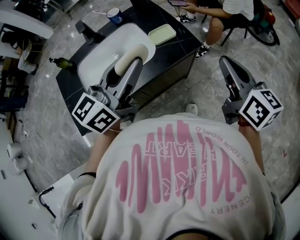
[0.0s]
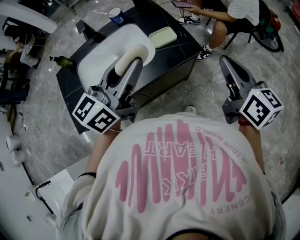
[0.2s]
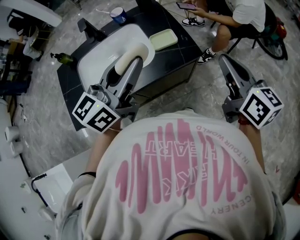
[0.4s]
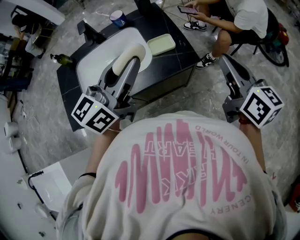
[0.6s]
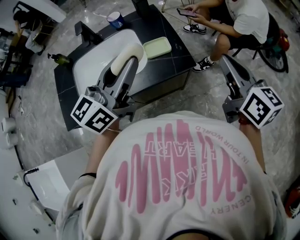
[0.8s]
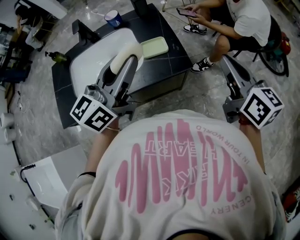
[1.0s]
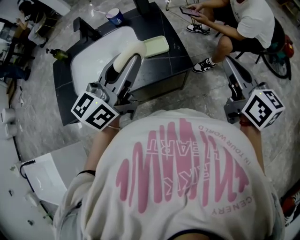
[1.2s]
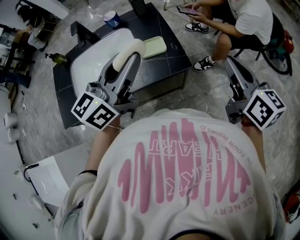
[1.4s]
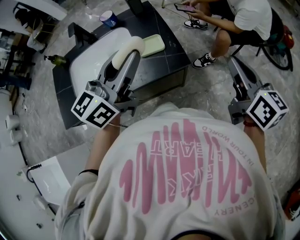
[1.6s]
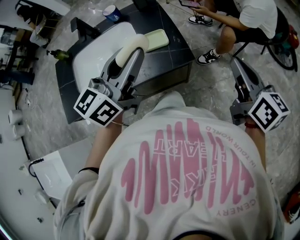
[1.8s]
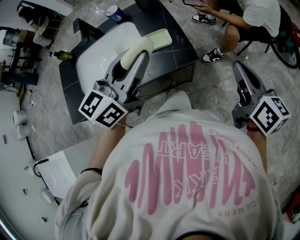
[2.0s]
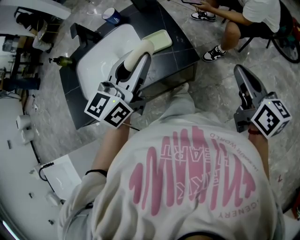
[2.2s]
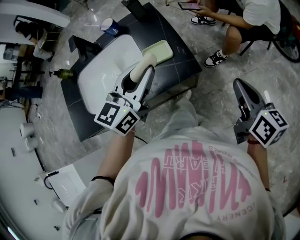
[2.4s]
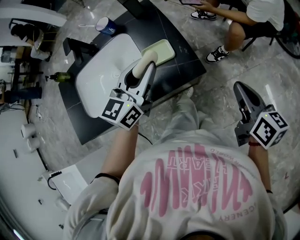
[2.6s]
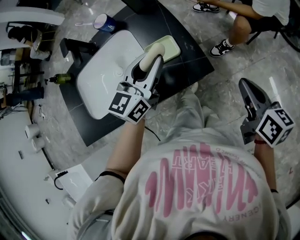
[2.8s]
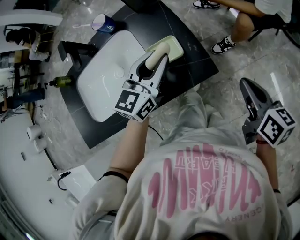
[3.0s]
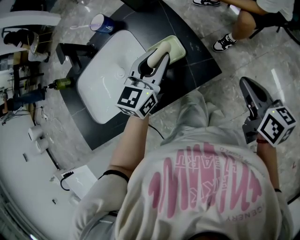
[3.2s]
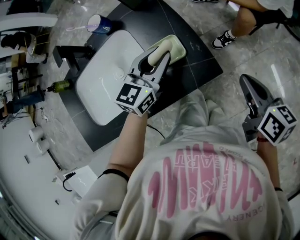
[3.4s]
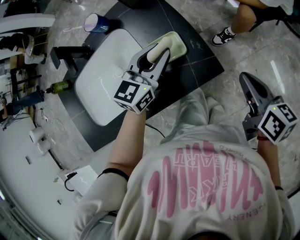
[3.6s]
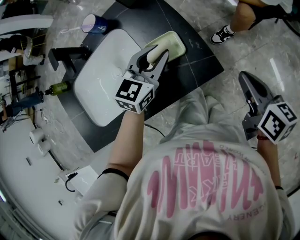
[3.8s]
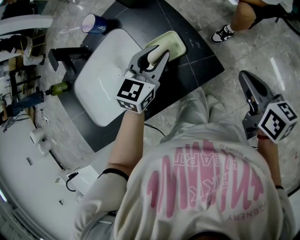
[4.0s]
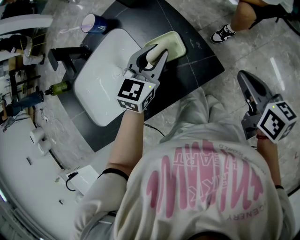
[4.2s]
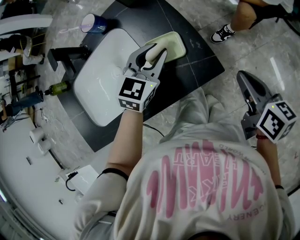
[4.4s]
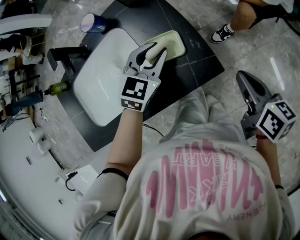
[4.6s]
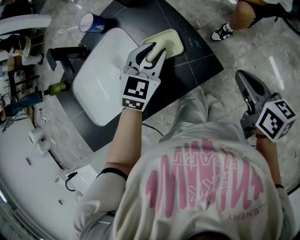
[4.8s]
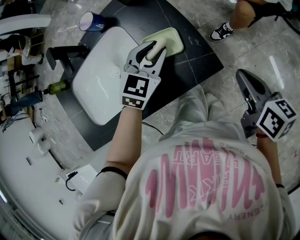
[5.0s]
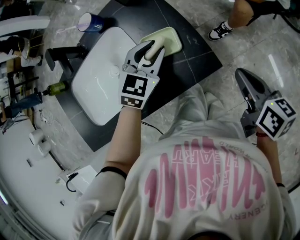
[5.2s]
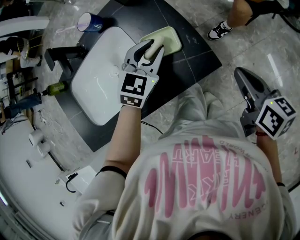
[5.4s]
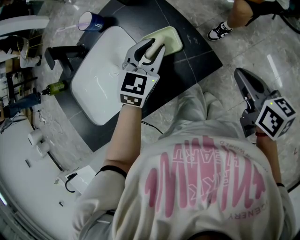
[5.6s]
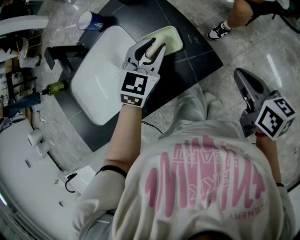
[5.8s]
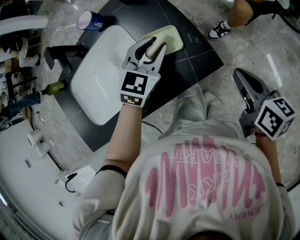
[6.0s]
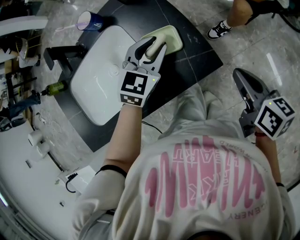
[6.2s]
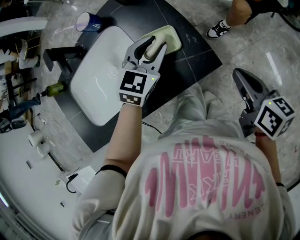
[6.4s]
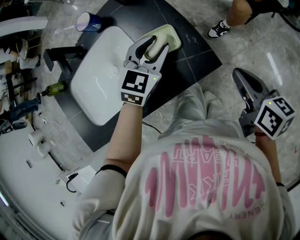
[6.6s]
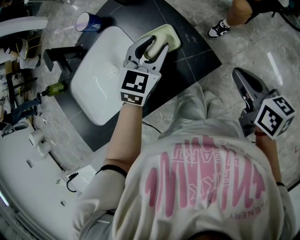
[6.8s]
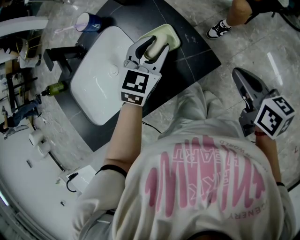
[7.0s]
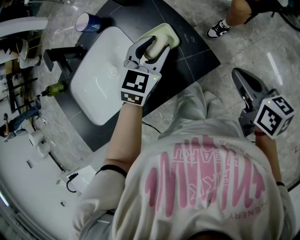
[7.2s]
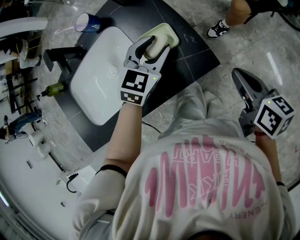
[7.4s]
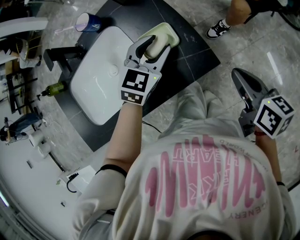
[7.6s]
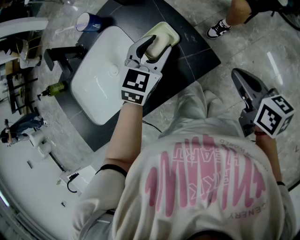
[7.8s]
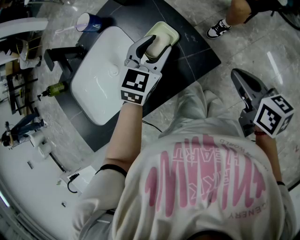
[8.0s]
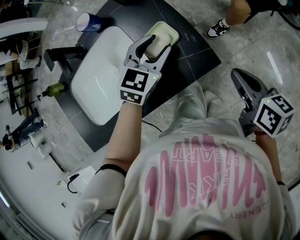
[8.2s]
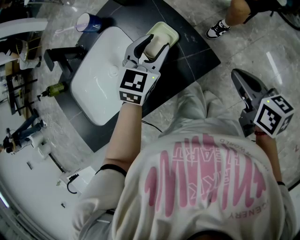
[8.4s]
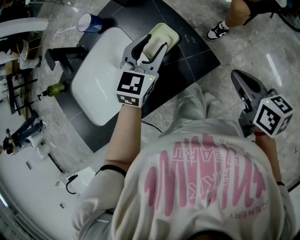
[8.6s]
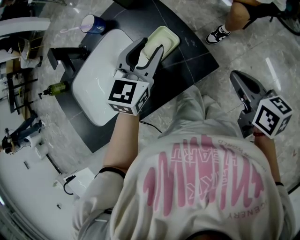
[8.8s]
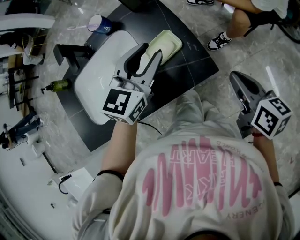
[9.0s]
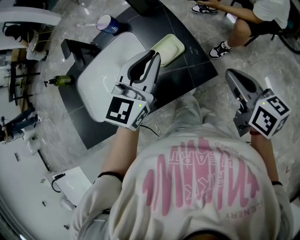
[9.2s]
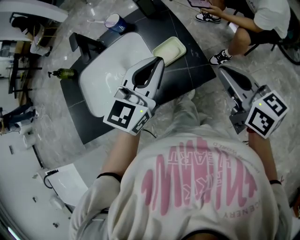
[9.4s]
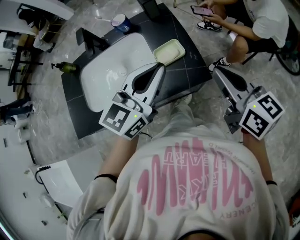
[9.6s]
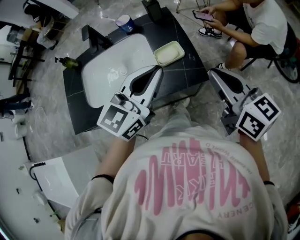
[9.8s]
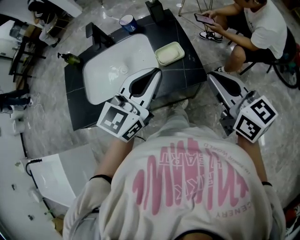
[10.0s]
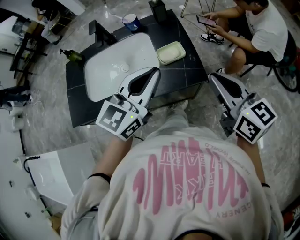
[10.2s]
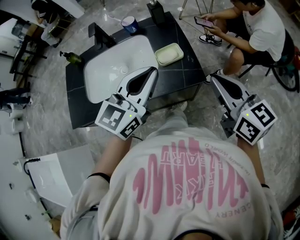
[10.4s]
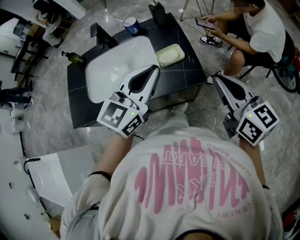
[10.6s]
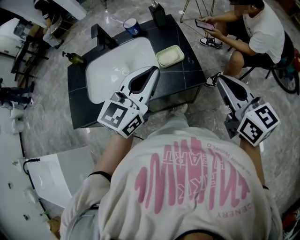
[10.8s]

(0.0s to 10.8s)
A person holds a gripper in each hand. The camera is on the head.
0.0s - 1.6s: The right gripper is displaced forward and to the right by some 20 cm, while the left gripper is displaced to the right and forward by about 15 cm.
1.6s - 3.0s: The left gripper heads downward and forward, covering some 20 cm, and changes its angle by about 20 degrees. The right gripper heads downward, covering about 15 cm, and changes its angle by some 20 degrees.
3.0s - 4.6s: The left gripper heads downward, covering roughly 5 cm, and turns by approximately 30 degrees.
4.6s - 7.8s: There are only small adjustments of the grippers.
7.8s - 9.2s: The left gripper heads upward, covering about 15 cm, changes its angle by about 20 degrees, and closes its fingers, while the right gripper is displaced upward by roughly 5 cm.
9.2s - 10.8s: The left gripper heads backward and upward, covering about 15 cm; the right gripper shifts approximately 10 cm upward and backward, and swivels some 30 degrees.

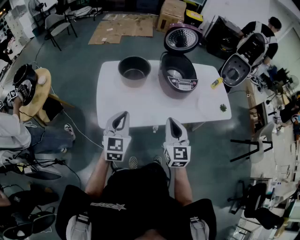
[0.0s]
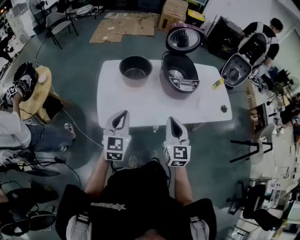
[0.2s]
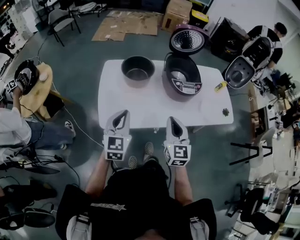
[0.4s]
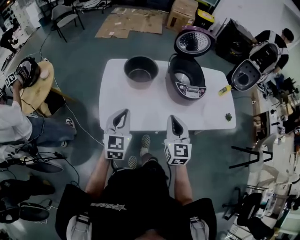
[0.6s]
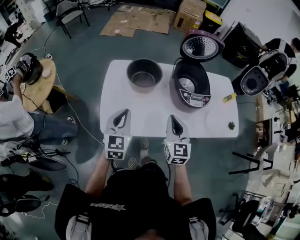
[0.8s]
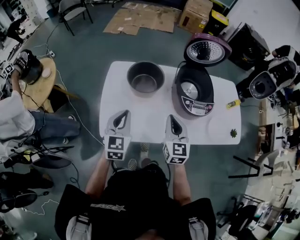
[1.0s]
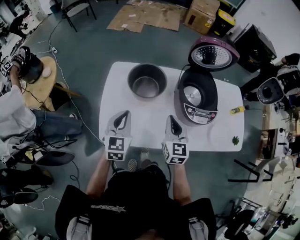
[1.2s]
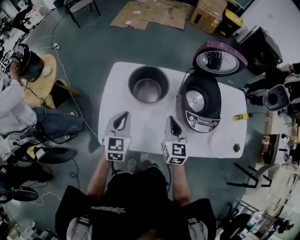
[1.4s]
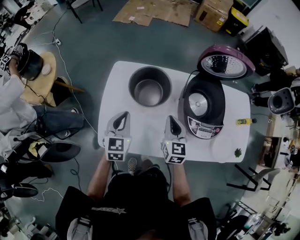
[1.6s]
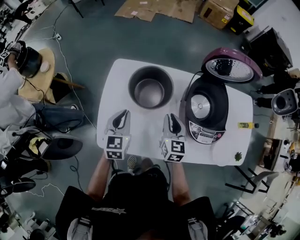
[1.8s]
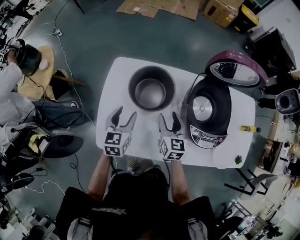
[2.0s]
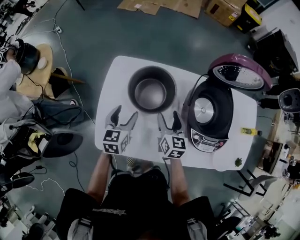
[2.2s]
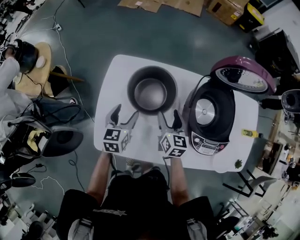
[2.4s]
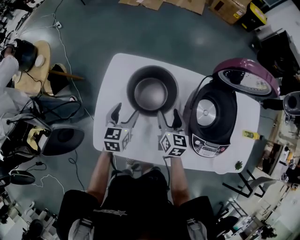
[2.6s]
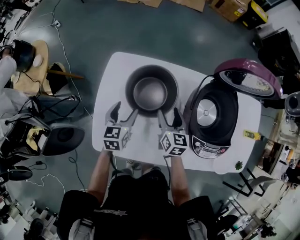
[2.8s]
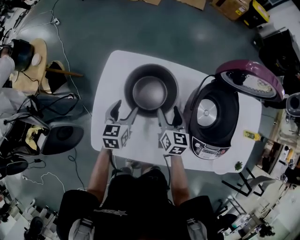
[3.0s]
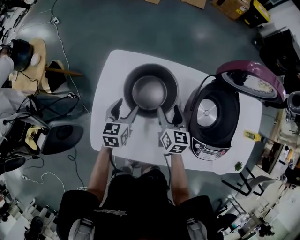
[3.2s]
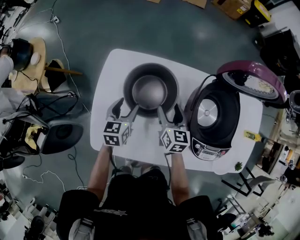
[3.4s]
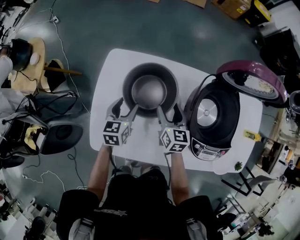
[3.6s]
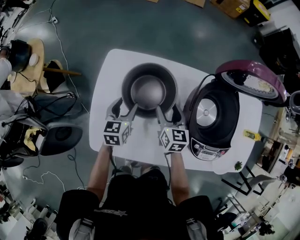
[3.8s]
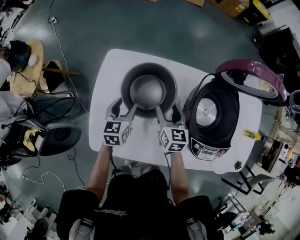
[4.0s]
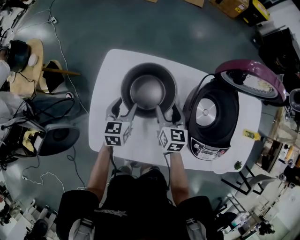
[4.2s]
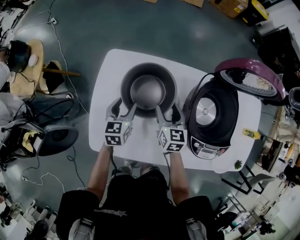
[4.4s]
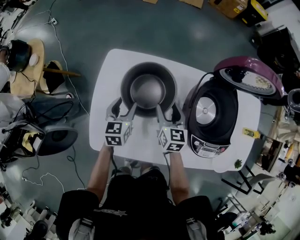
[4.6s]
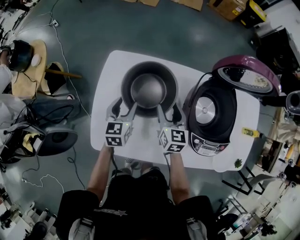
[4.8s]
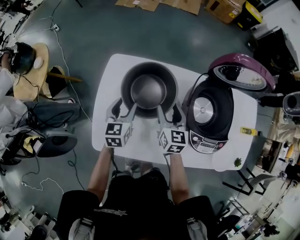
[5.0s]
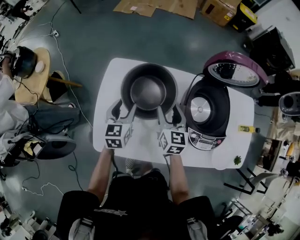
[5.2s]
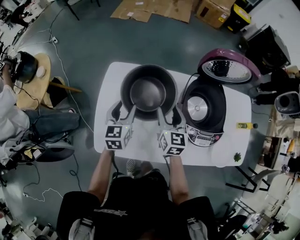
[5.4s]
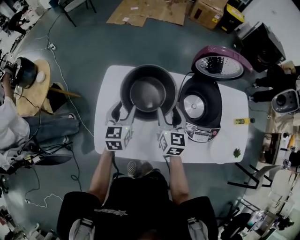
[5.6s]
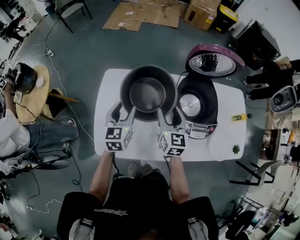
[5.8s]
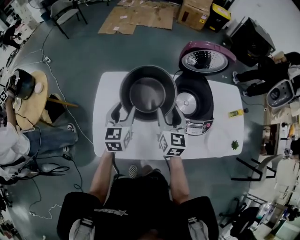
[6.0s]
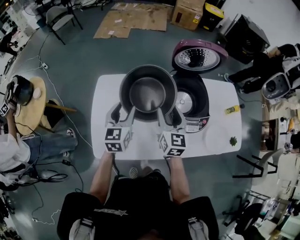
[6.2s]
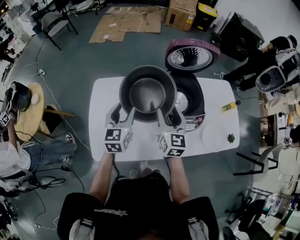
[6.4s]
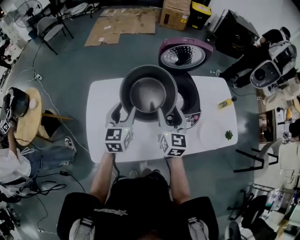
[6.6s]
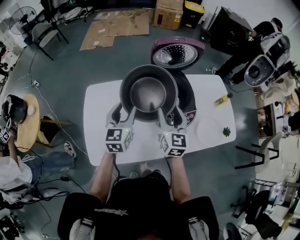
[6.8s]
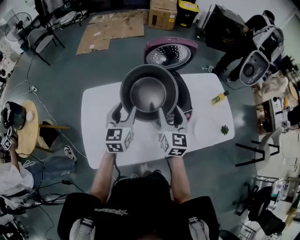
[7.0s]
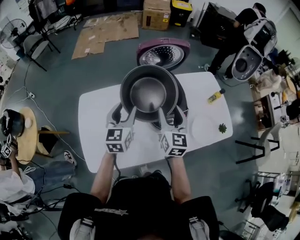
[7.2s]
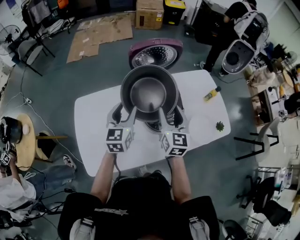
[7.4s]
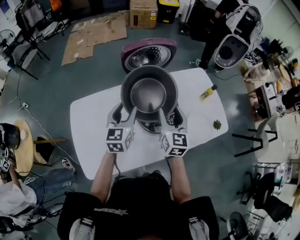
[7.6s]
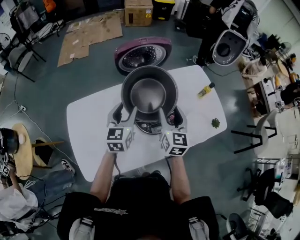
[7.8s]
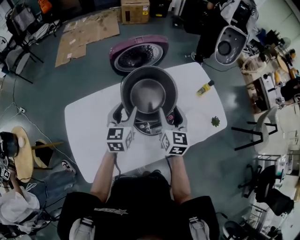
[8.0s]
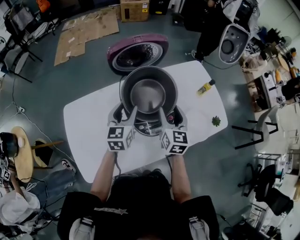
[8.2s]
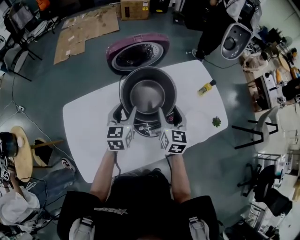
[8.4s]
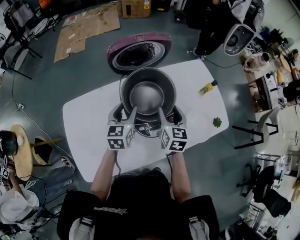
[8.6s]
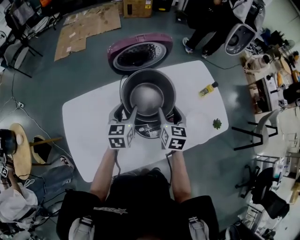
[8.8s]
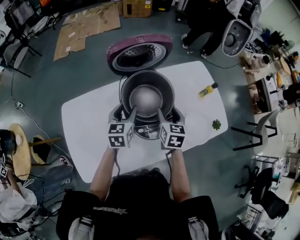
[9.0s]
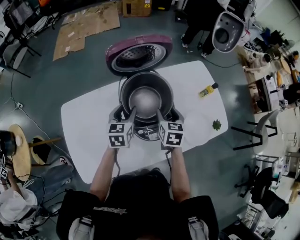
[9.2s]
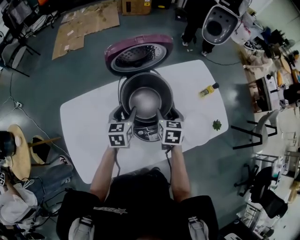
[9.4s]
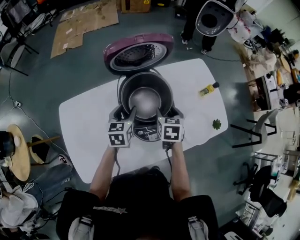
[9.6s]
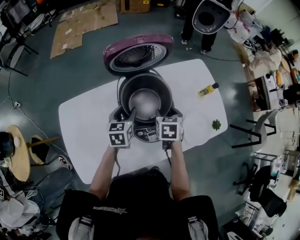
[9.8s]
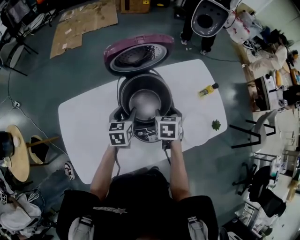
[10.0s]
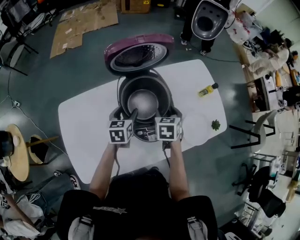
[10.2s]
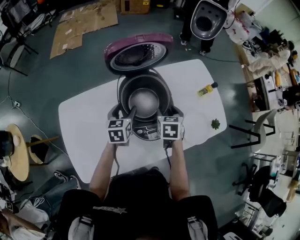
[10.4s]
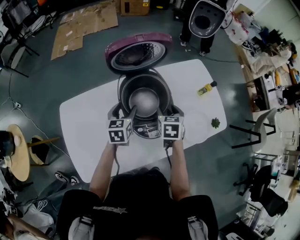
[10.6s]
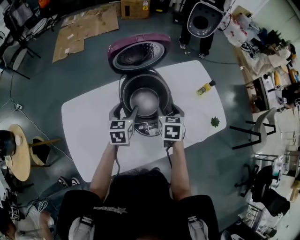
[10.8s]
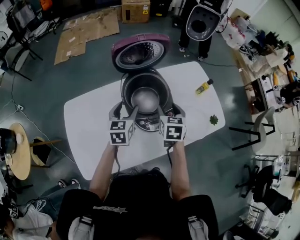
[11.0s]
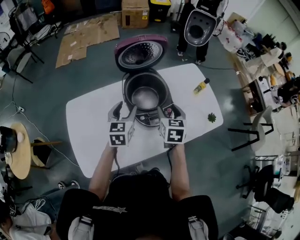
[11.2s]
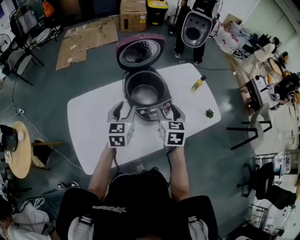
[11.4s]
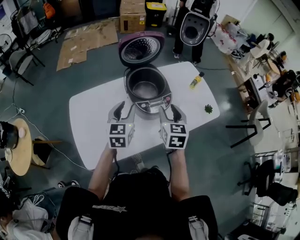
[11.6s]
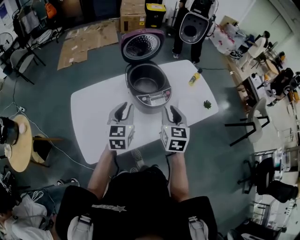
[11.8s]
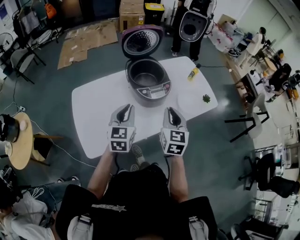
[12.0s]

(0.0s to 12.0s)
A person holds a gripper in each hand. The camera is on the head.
0.0s - 1.6s: The two grippers go some 25 cm forward.
1.6s - 3.0s: Both grippers travel together downward and forward, roughly 15 cm. The left gripper swivels approximately 20 degrees, and opens up. The right gripper opens.
3.0s - 4.4s: The grippers make only small movements.
4.4s - 6.0s: The right gripper shifts approximately 20 cm upward and backward. The left gripper moves upward, about 15 cm.
6.0s - 7.6s: Both grippers move to the right, about 20 cm. The right gripper rotates roughly 20 degrees.
7.6s - 9.0s: The grippers both shift downward and forward by approximately 10 cm. The right gripper changes its angle by some 20 degrees.
9.0s - 10.4s: The left gripper ends up about 5 cm from where it was.
10.4s - 12.0s: Both grippers travel together backward and upward, about 30 cm. The right gripper tips its fingers upward by approximately 30 degrees, and closes up; the left gripper swivels about 30 degrees, and closes.

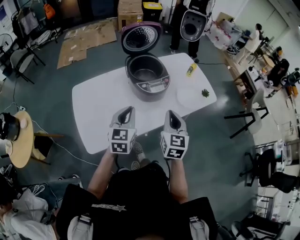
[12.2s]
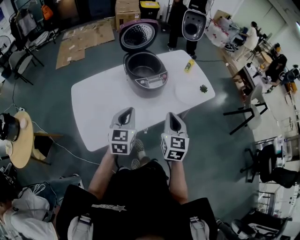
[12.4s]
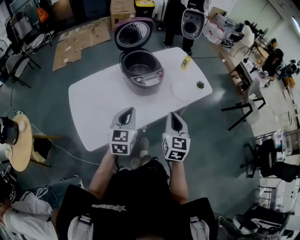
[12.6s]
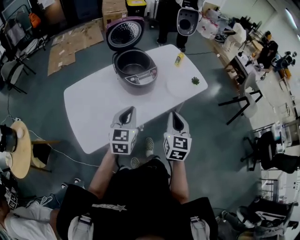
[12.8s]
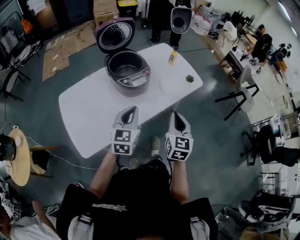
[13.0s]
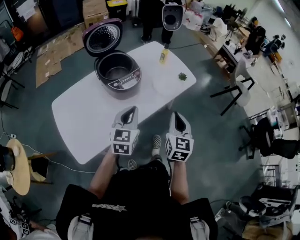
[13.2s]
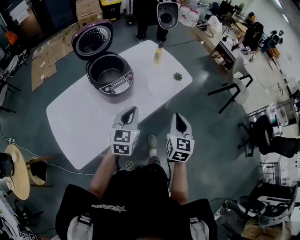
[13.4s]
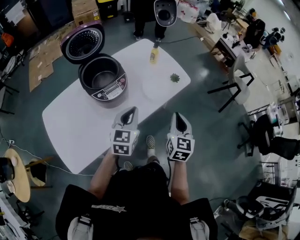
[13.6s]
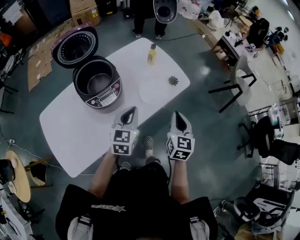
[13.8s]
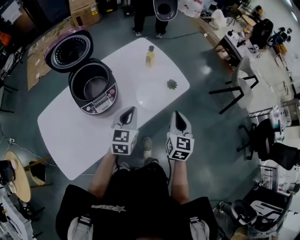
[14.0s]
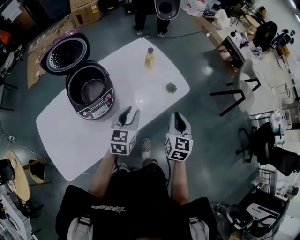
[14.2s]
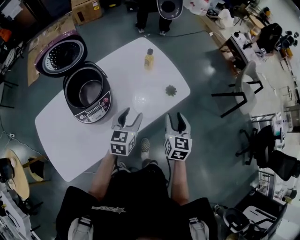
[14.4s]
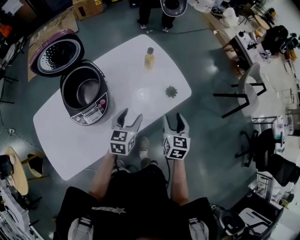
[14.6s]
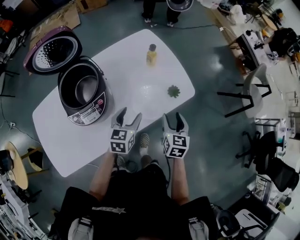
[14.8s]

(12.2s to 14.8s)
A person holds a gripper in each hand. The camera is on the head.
12.2s - 13.4s: The two grippers go roughly 20 cm to the right.
13.4s - 14.8s: Both grippers travel together forward and downward, about 30 cm. The right gripper rotates about 20 degrees, and opens its fingers; the left gripper rotates approximately 20 degrees, and opens up.
